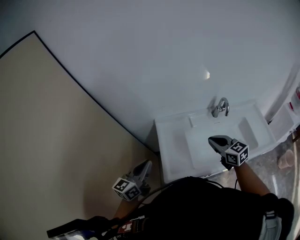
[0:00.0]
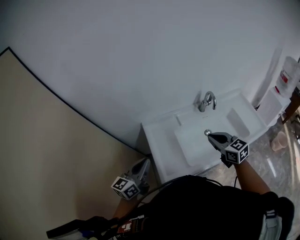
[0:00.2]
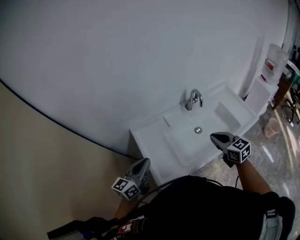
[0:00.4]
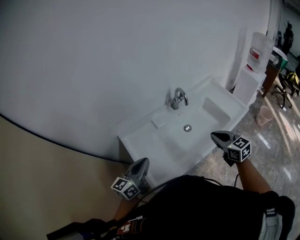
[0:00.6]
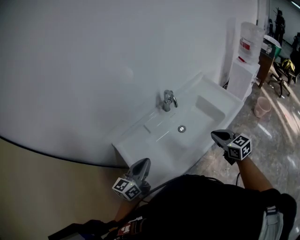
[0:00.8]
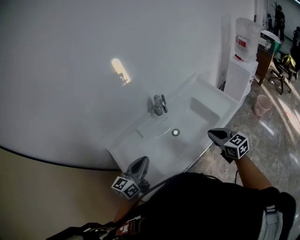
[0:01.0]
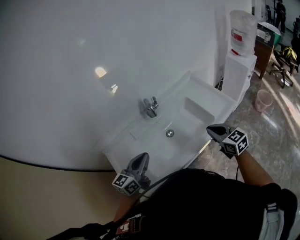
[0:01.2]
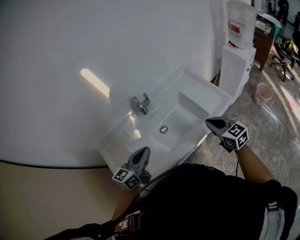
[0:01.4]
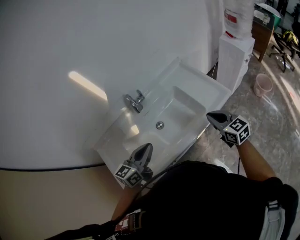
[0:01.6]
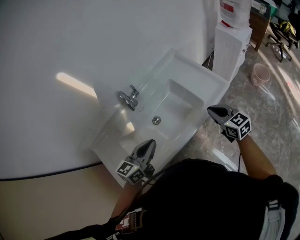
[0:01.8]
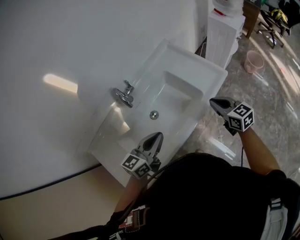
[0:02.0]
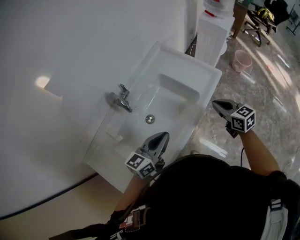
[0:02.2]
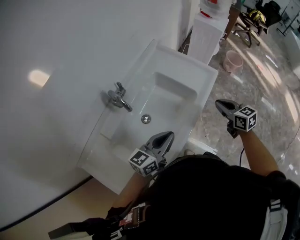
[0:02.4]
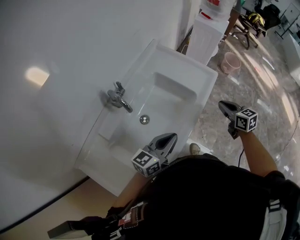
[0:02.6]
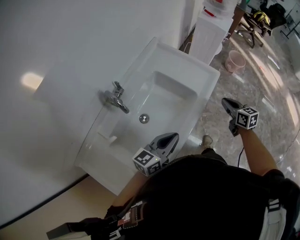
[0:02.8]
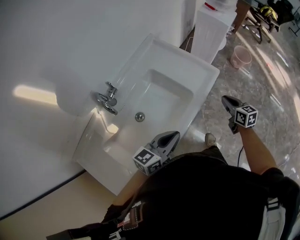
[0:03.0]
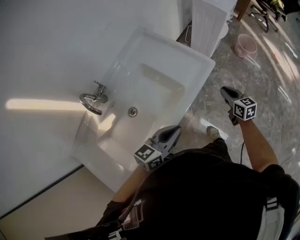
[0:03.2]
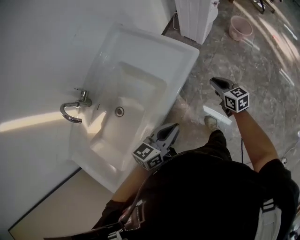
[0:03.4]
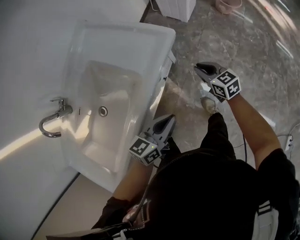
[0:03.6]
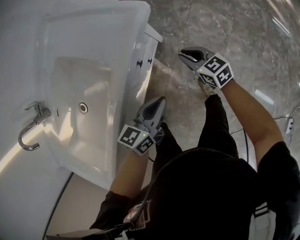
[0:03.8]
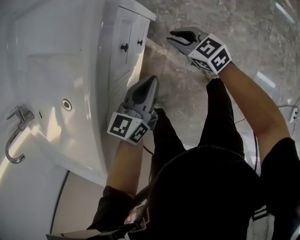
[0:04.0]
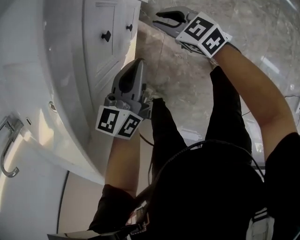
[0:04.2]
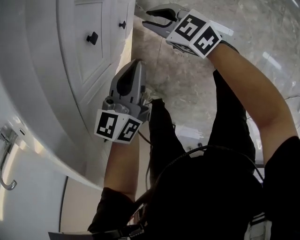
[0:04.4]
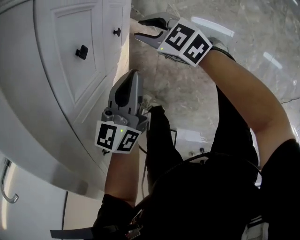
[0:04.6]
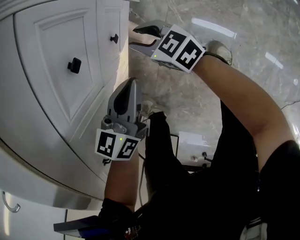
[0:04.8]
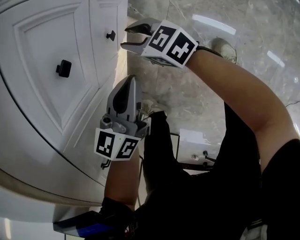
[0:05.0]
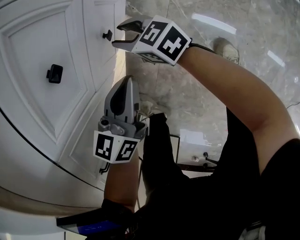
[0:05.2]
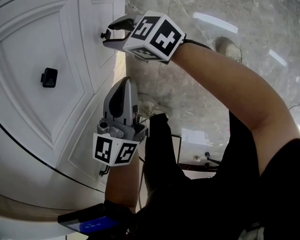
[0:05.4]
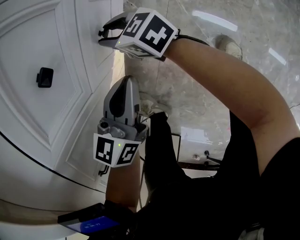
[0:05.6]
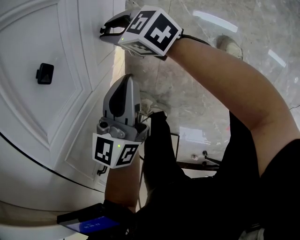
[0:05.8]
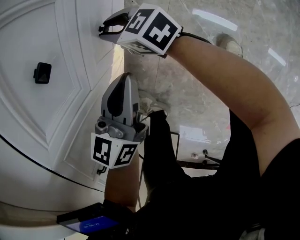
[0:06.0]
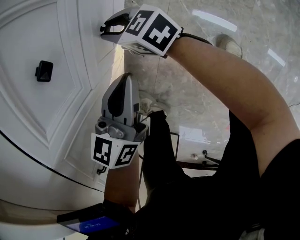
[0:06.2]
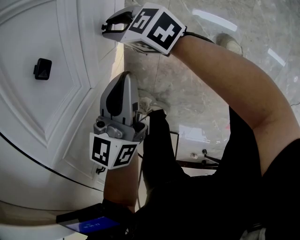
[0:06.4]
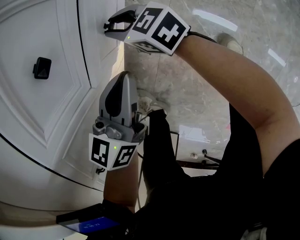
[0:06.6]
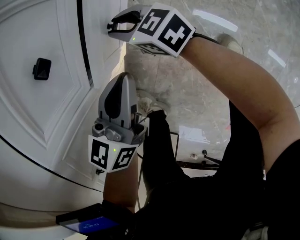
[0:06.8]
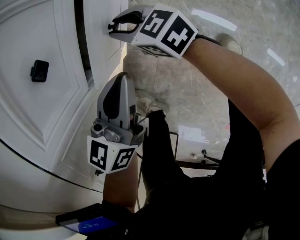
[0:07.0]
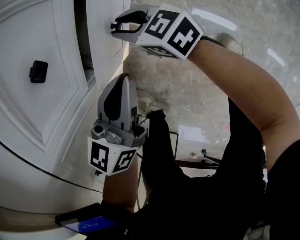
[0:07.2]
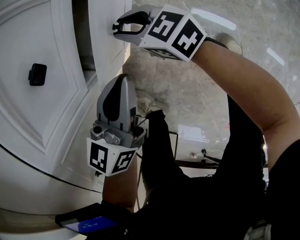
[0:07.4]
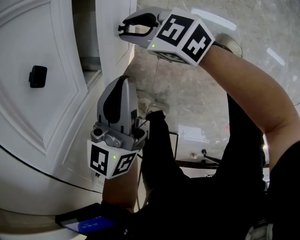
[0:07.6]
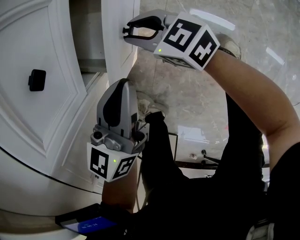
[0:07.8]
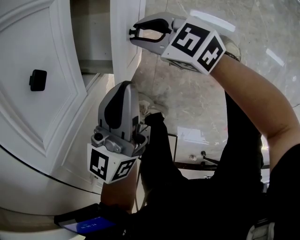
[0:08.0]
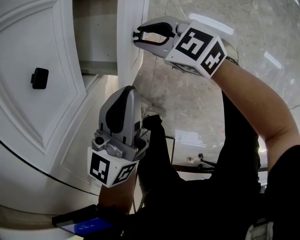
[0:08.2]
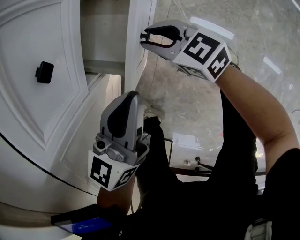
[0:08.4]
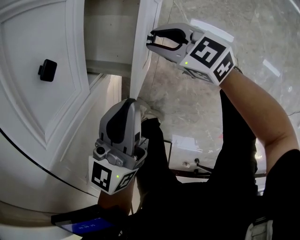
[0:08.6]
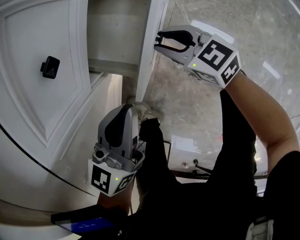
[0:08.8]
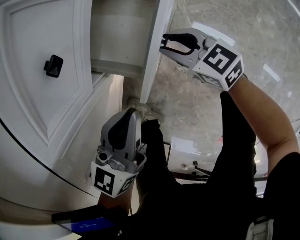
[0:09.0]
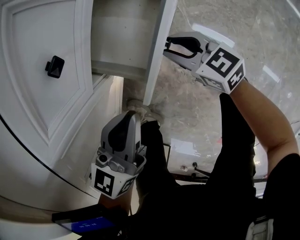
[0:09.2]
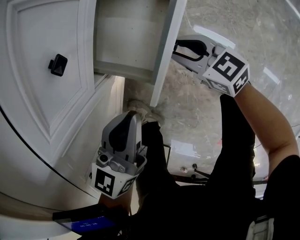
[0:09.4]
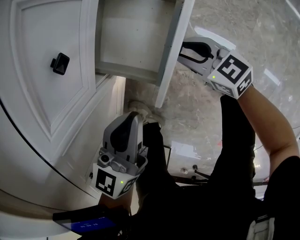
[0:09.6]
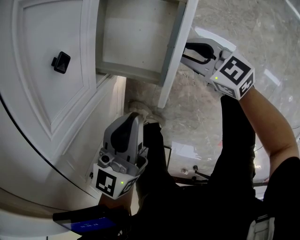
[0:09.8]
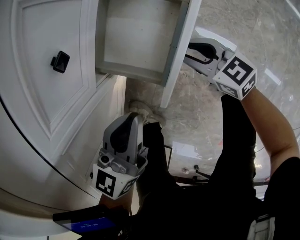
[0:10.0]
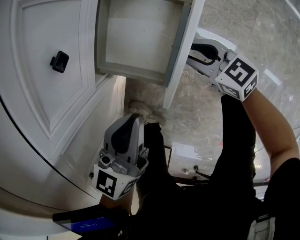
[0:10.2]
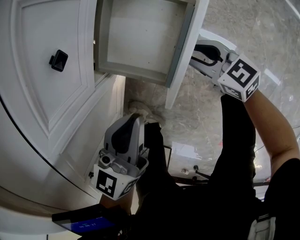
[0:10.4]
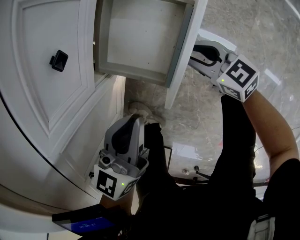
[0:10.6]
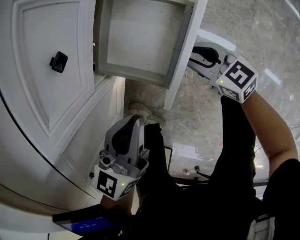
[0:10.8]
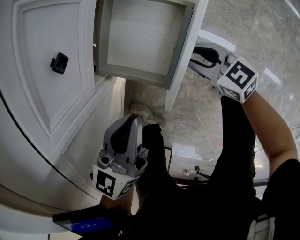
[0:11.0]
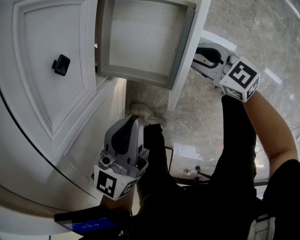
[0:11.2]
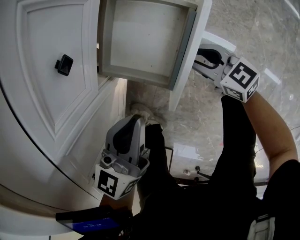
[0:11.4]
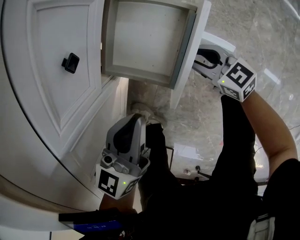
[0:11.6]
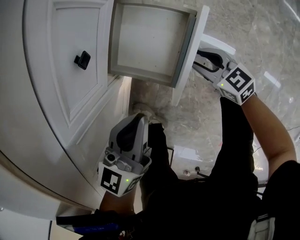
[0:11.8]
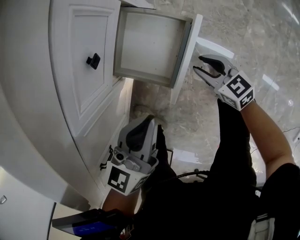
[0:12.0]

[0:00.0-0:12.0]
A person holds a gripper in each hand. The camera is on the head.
0:00.0 to 0:01.6: Both grippers are carried some 50 cm. The left gripper turns by some 30 degrees; the right gripper turns by approximately 30 degrees.
0:01.6 to 0:03.0: The left gripper changes place by roughly 15 cm, and changes its angle by approximately 30 degrees; the right gripper shifts some 15 cm downward, and swivels approximately 40 degrees.
0:03.0 to 0:04.4: The right gripper shifts approximately 50 cm downward, and changes its angle by roughly 20 degrees; the left gripper heads downward and to the right, covering roughly 50 cm, and swivels some 20 degrees.
0:04.4 to 0:06.0: The right gripper shifts some 20 cm downward and to the left. The left gripper travels downward by approximately 15 cm.
0:06.0 to 0:07.6: The right gripper shifts by about 5 cm.
0:07.6 to 0:09.0: The right gripper goes about 10 cm to the right and backward. Meanwhile the left gripper moves approximately 5 cm.
0:09.0 to 0:10.4: The right gripper changes place by some 5 cm.
0:10.4 to 0:12.0: The left gripper moves upward, about 5 cm.

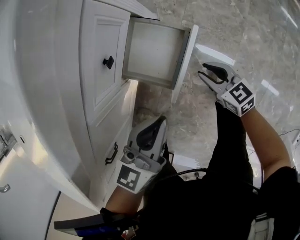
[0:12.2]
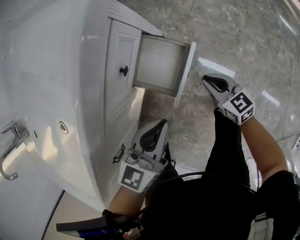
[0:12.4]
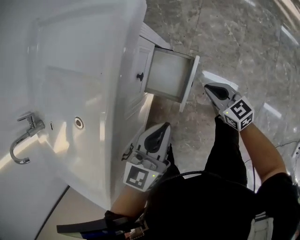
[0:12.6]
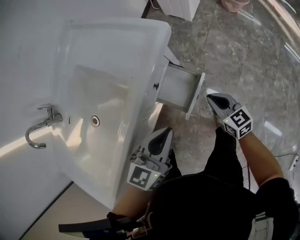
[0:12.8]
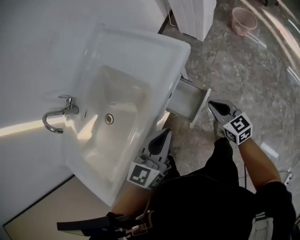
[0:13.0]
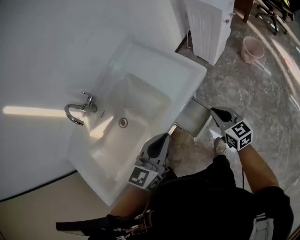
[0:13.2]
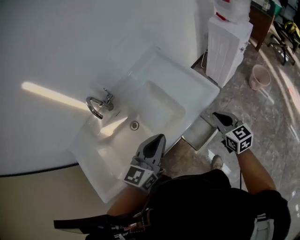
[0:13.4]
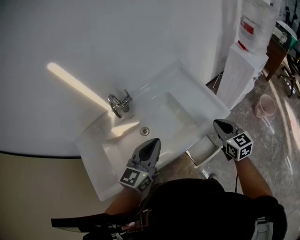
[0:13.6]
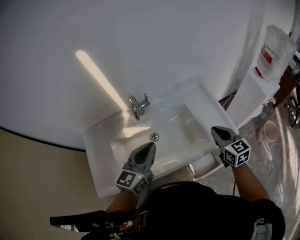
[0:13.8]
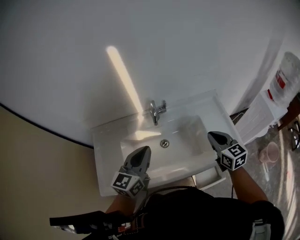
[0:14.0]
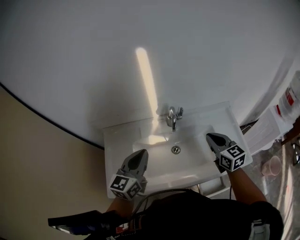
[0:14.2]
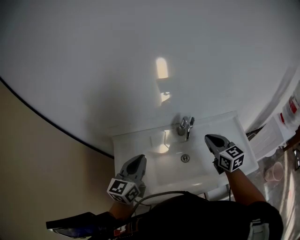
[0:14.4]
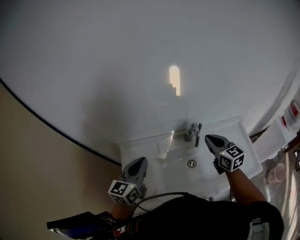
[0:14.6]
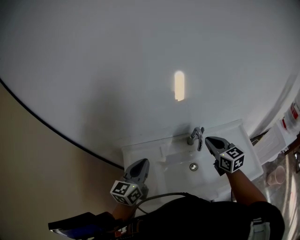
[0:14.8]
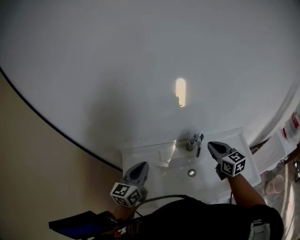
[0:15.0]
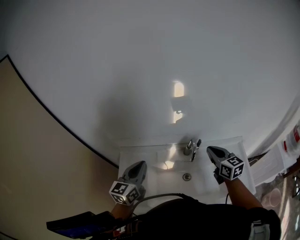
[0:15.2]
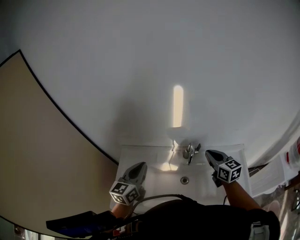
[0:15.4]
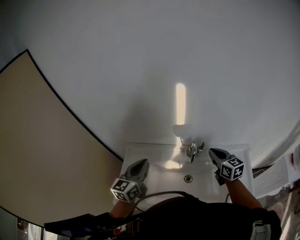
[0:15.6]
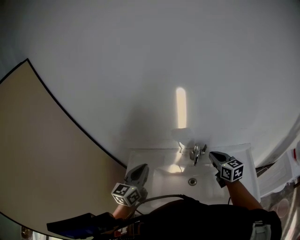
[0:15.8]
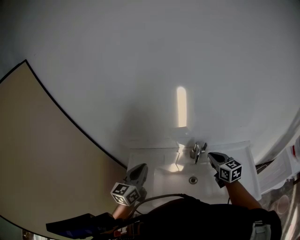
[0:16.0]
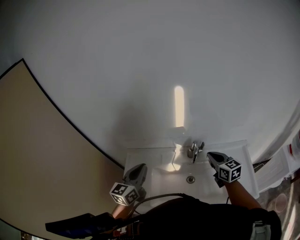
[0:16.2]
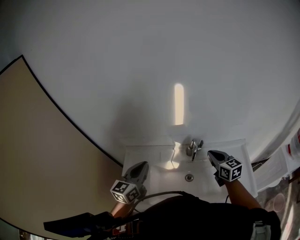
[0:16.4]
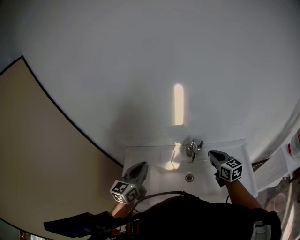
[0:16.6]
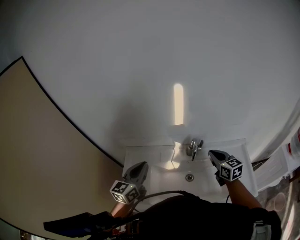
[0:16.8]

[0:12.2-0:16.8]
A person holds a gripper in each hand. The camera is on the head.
0:12.2 to 0:13.8: Both grippers travel together upward, roughly 60 cm. The right gripper turns by approximately 30 degrees, and closes its fingers; the left gripper swivels about 50 degrees.
0:13.8 to 0:15.2: The right gripper travels to the left, forward and upward by about 35 cm, and rotates approximately 20 degrees, while the left gripper heads to the left, covering about 30 cm, and changes its angle by approximately 30 degrees.
0:15.2 to 0:16.8: The grippers stay close to where they were, moving slightly.

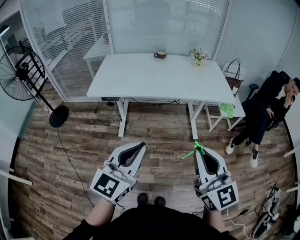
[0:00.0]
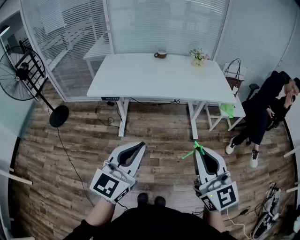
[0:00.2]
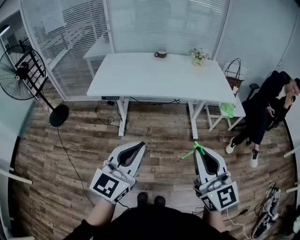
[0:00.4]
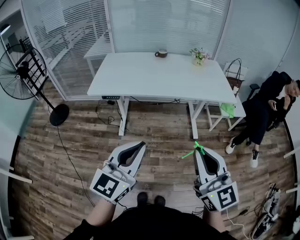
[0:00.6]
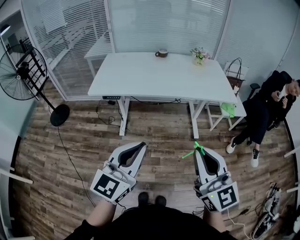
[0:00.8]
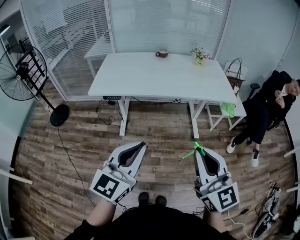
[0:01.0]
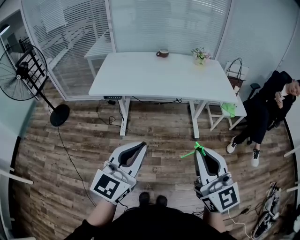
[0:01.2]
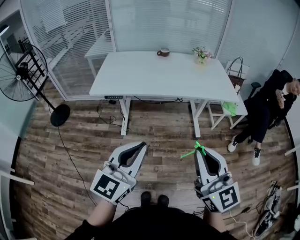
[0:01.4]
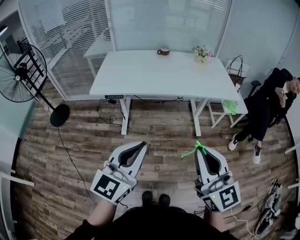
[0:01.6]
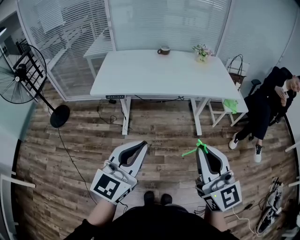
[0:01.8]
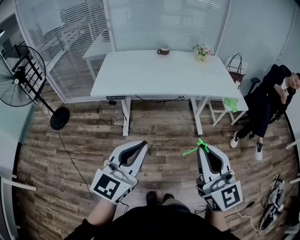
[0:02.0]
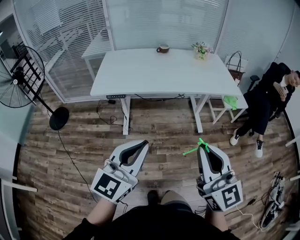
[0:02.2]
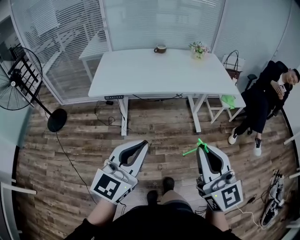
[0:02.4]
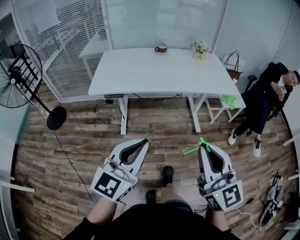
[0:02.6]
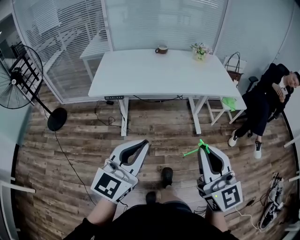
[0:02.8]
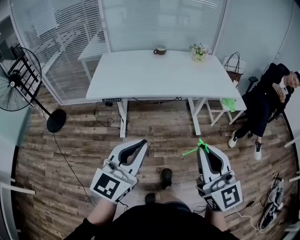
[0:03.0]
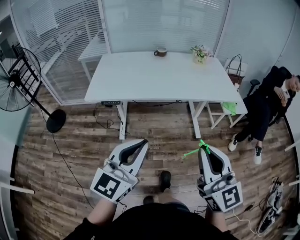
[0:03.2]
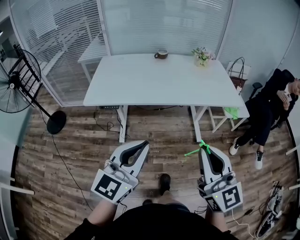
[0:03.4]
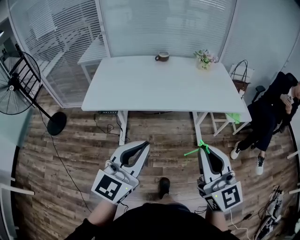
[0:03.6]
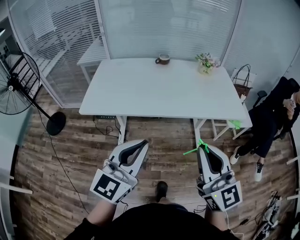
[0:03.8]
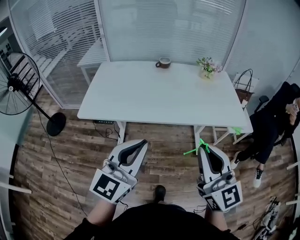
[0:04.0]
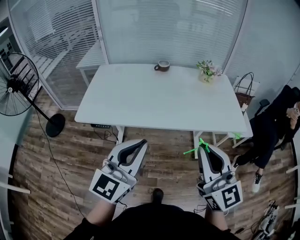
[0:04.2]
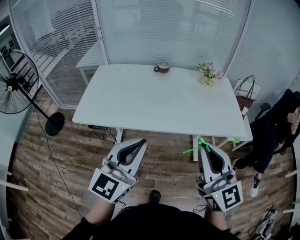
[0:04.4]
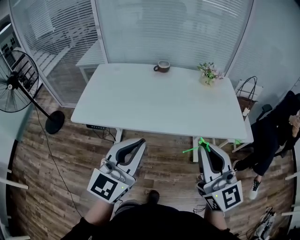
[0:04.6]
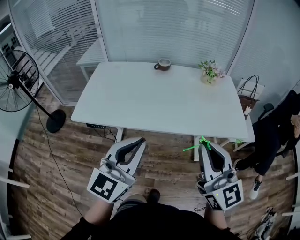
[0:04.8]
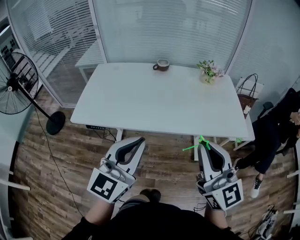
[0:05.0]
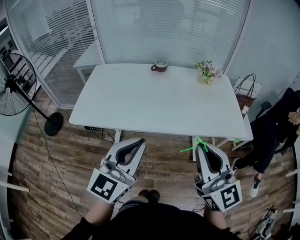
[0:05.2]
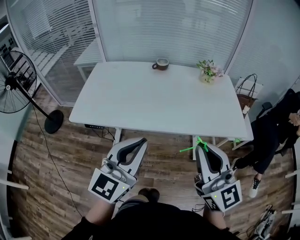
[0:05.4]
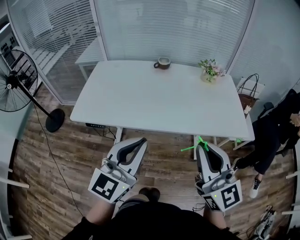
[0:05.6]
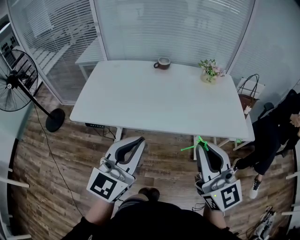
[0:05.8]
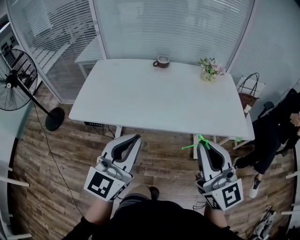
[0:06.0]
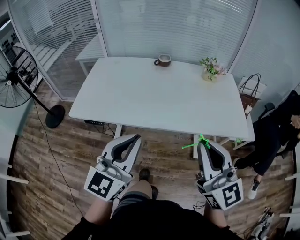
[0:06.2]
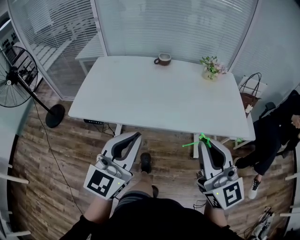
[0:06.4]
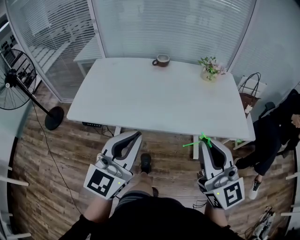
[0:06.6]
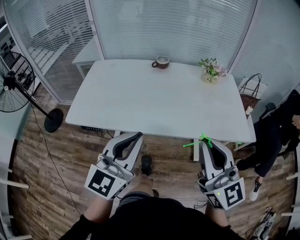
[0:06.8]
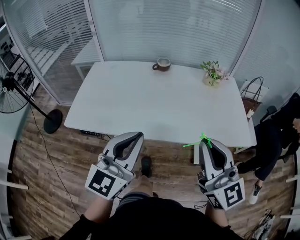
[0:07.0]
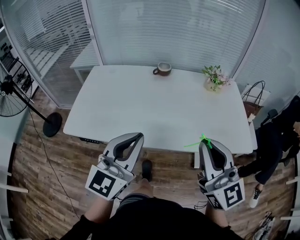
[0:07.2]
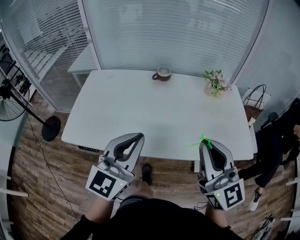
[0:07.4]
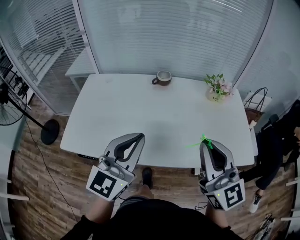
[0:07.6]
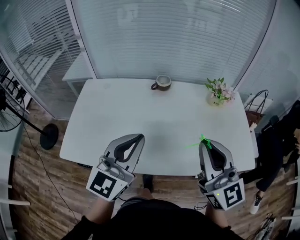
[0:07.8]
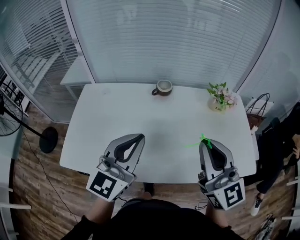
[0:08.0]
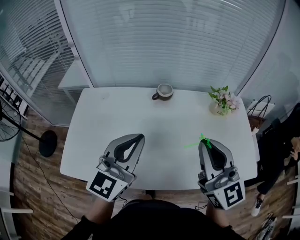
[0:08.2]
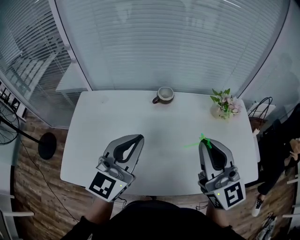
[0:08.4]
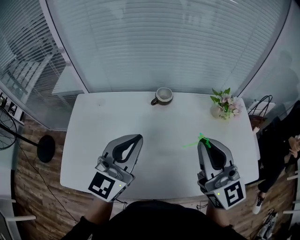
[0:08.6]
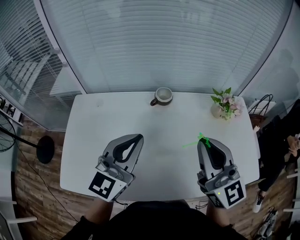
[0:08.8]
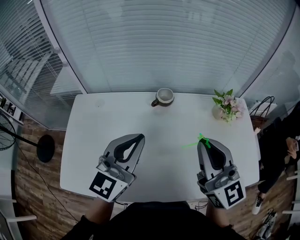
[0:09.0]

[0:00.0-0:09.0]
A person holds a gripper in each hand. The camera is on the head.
0:00.0 to 0:01.6: There are only small adjustments of the grippers.
0:01.6 to 0:03.0: The grippers move only a little.
0:03.0 to 0:04.4: Both grippers travel together forward, about 25 cm.
0:04.4 to 0:06.0: The grippers make only small movements.
0:06.0 to 0:07.6: The two grippers go roughly 20 cm forward.
0:07.6 to 0:09.0: The two grippers go about 20 cm forward.
